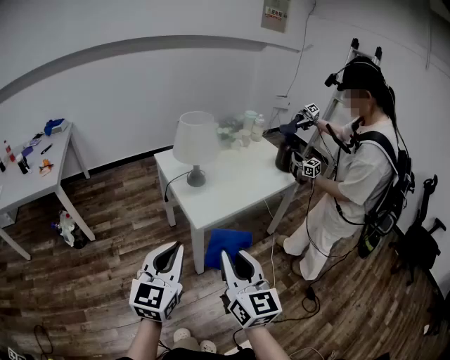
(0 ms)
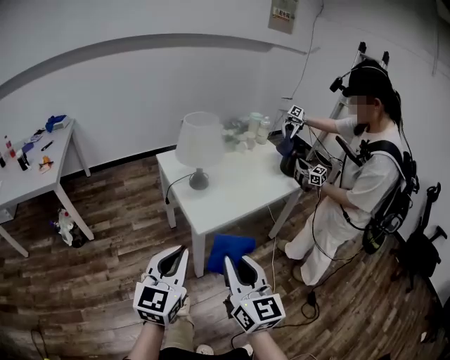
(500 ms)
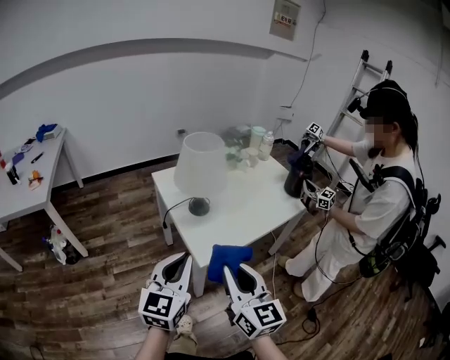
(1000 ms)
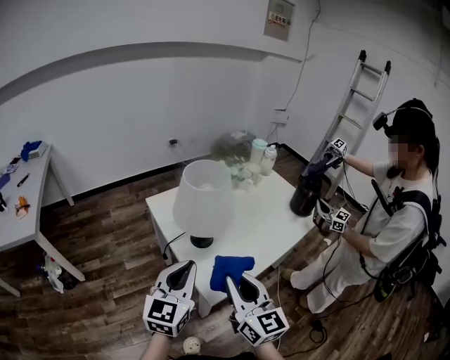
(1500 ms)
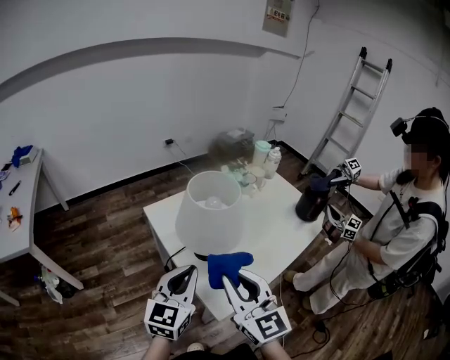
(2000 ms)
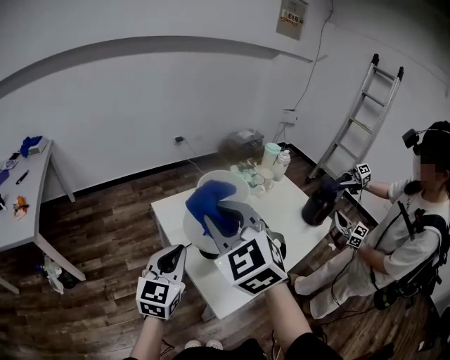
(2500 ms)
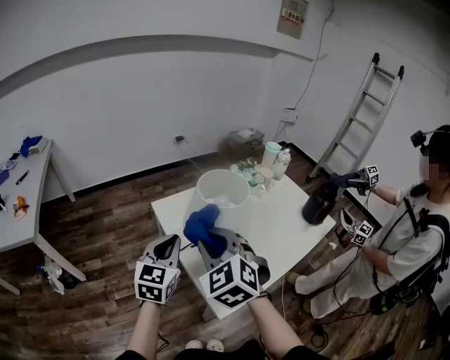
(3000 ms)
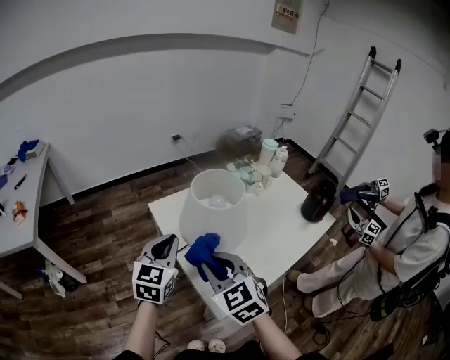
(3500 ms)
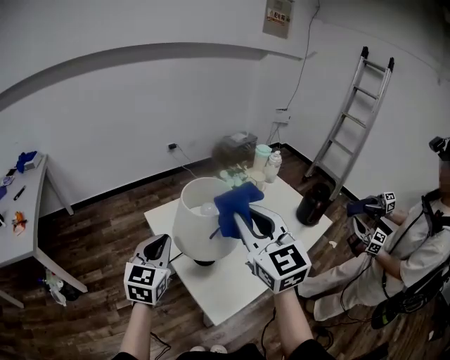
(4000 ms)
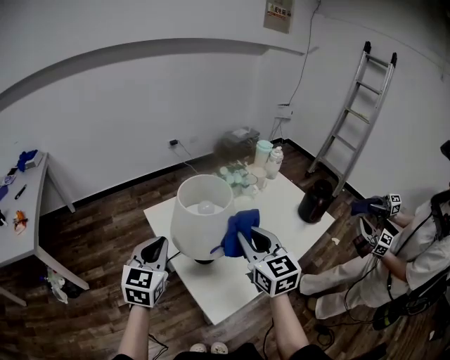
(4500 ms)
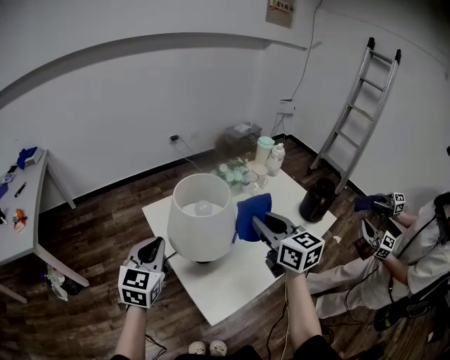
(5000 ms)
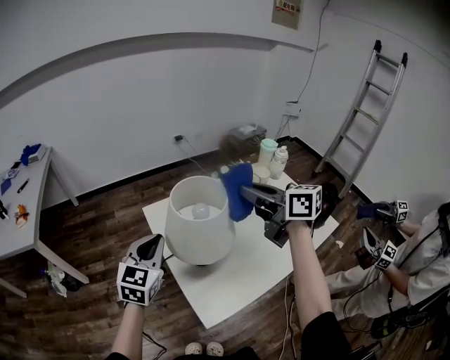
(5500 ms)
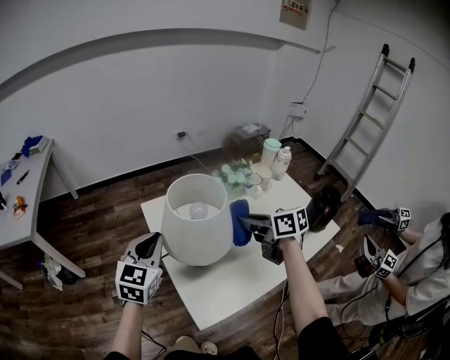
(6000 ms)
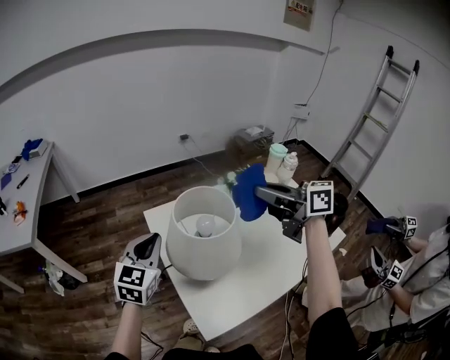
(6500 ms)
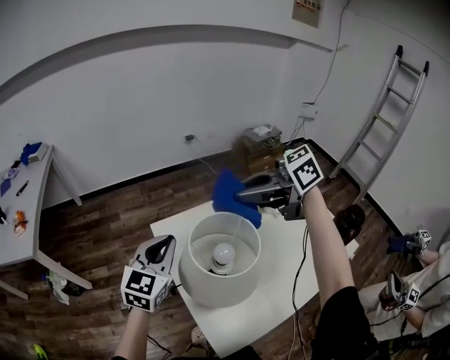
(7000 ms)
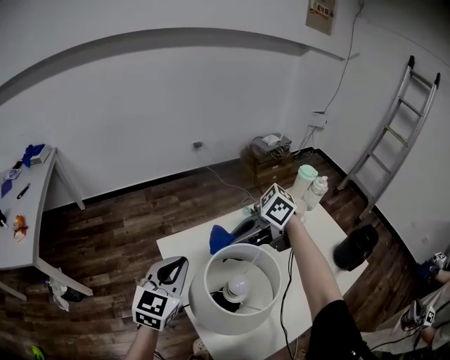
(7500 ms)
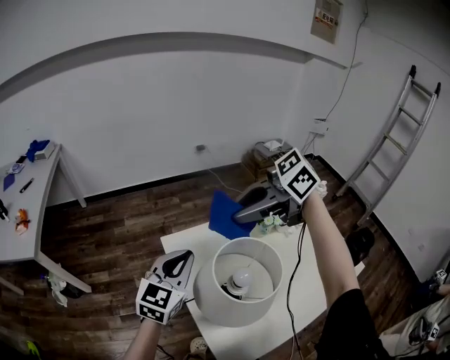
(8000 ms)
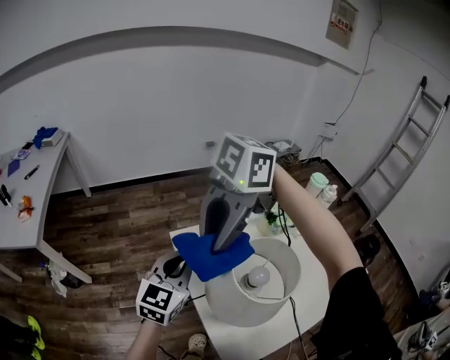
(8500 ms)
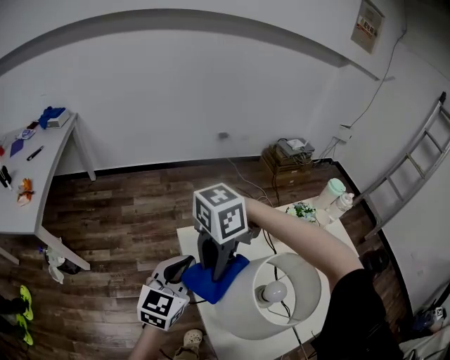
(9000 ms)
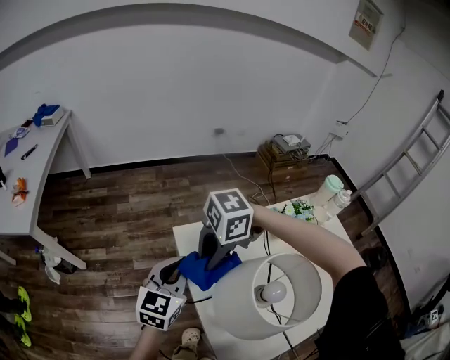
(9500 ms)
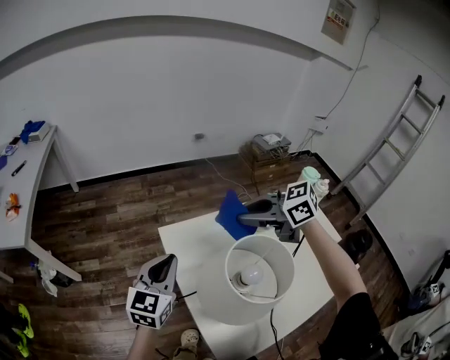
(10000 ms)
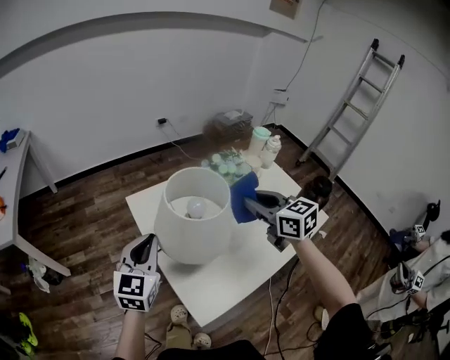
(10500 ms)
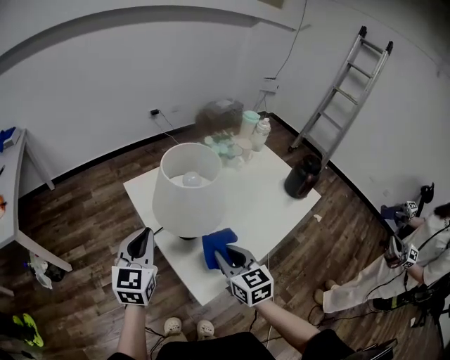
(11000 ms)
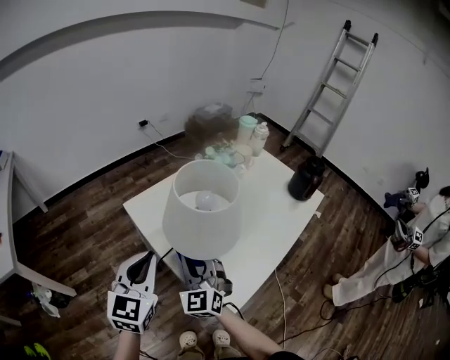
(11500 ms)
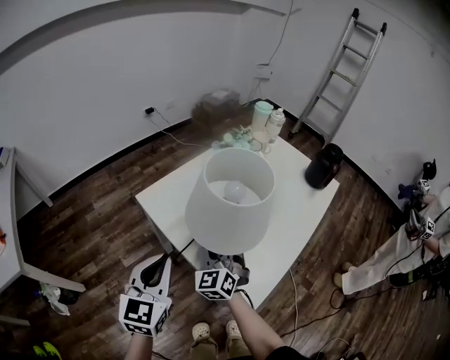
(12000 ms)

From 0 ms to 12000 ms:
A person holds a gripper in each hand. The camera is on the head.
From 0 ms to 2000 ms: The grippers both shift forward by approximately 35 cm.
From 2000 ms to 4000 ms: The left gripper travels forward by some 10 cm; the right gripper swings up and down, about 15 cm each way, with 2 reversals.
From 4000 ms to 6000 ms: The right gripper swings up and down, about 20 cm each way, with 2 reversals, and swivels about 60 degrees.
From 6000 ms to 8000 ms: The right gripper moves up and down over about 15 cm, changing direction 2 times, and swivels about 60 degrees. Meanwhile the left gripper changes place by approximately 10 cm.
From 8000 ms to 10000 ms: The right gripper is displaced downward by about 10 cm, while the left gripper shifts by approximately 10 cm.
From 10000 ms to 12000 ms: The left gripper ends up approximately 15 cm from where it was. The right gripper heads downward, covering about 20 cm, and changes its angle by some 90 degrees.

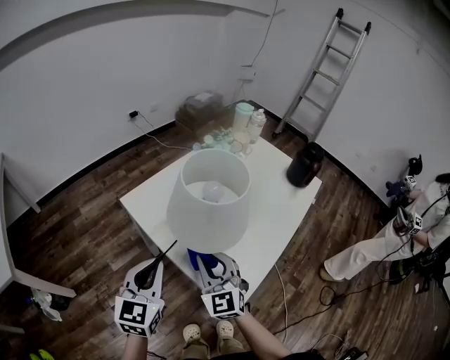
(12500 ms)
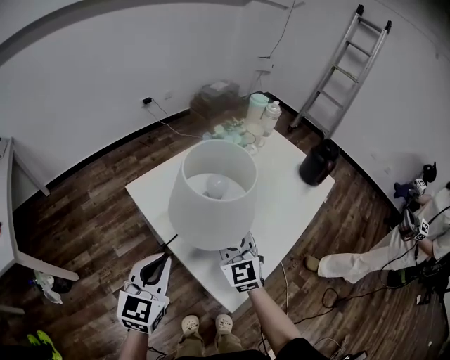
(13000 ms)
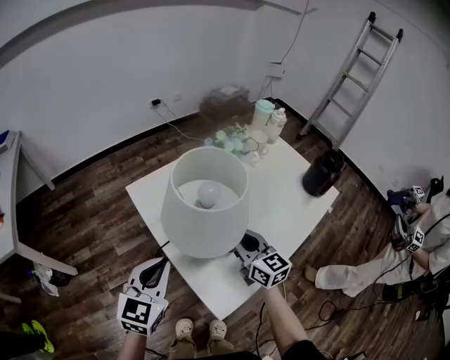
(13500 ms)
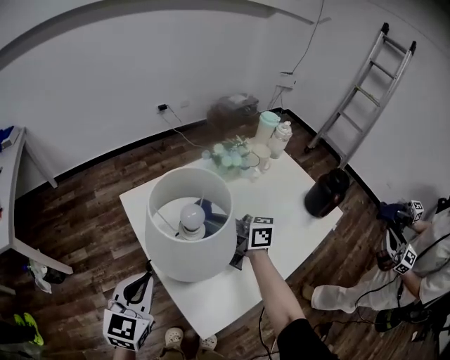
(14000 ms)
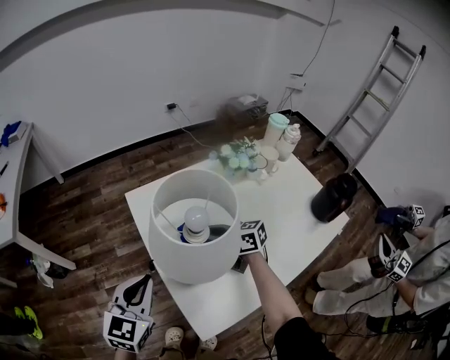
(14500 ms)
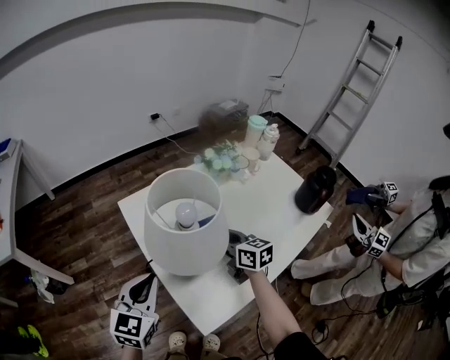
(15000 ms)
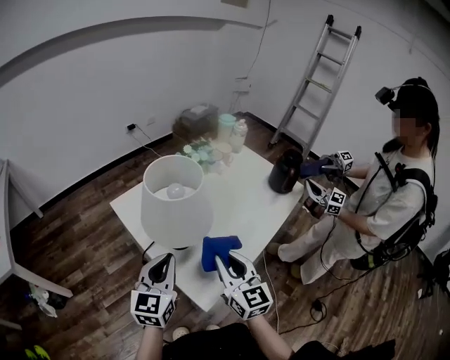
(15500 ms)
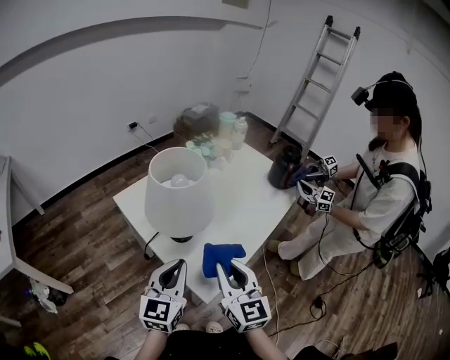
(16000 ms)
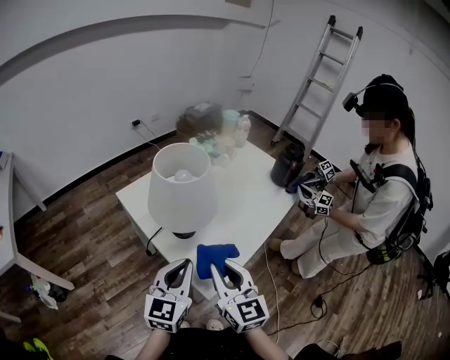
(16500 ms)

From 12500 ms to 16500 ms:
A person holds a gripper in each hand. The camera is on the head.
From 12500 ms to 14500 ms: The right gripper changes place by approximately 15 cm, and swivels roughly 80 degrees.
From 14500 ms to 16500 ms: The left gripper changes place by roughly 15 cm, and rotates roughly 20 degrees. The right gripper changes place by some 30 cm, and swivels about 70 degrees.

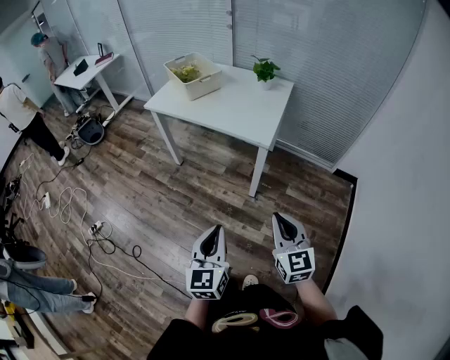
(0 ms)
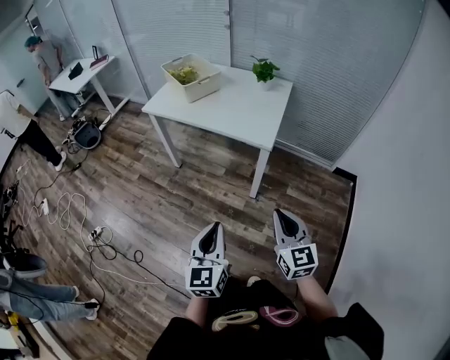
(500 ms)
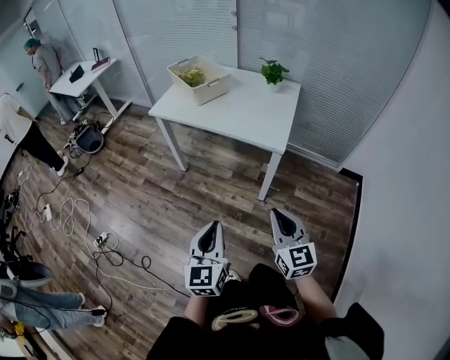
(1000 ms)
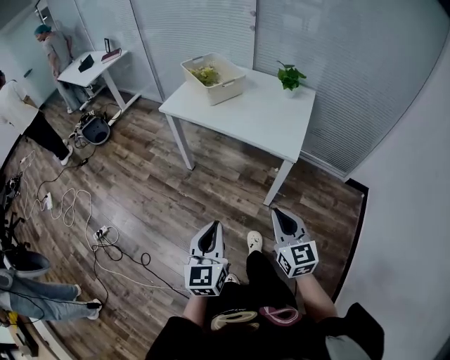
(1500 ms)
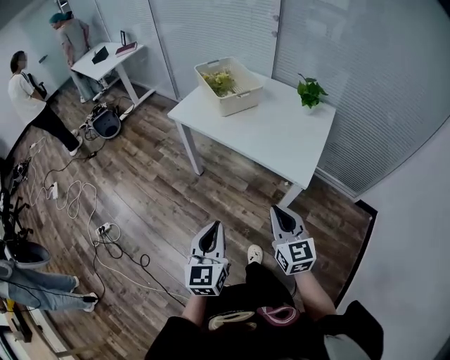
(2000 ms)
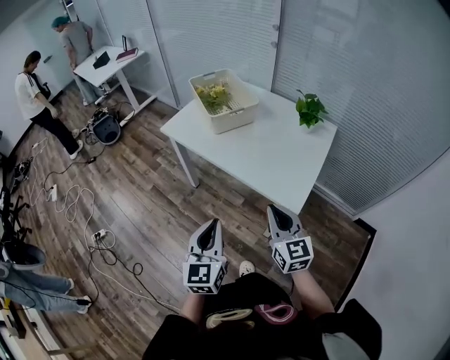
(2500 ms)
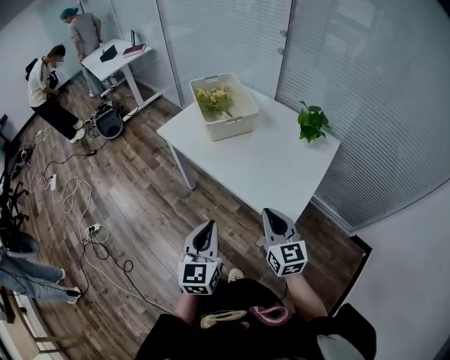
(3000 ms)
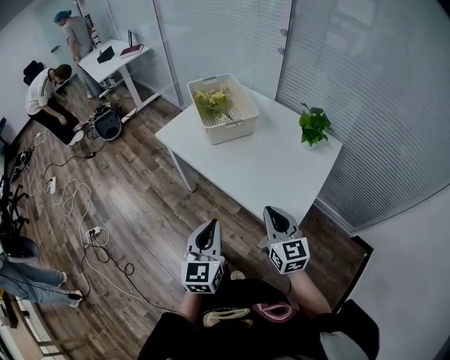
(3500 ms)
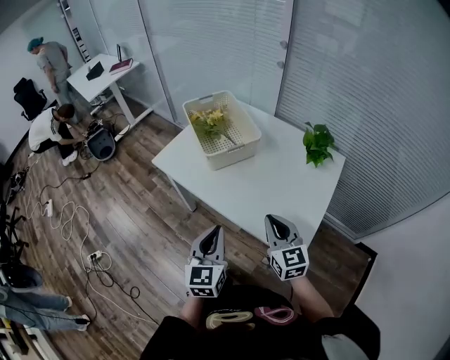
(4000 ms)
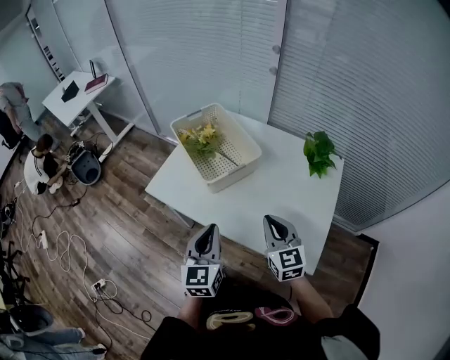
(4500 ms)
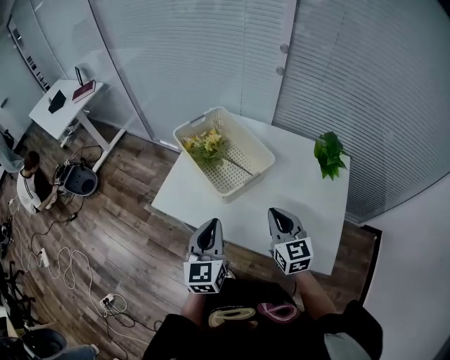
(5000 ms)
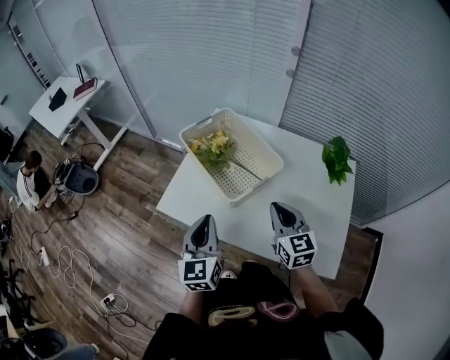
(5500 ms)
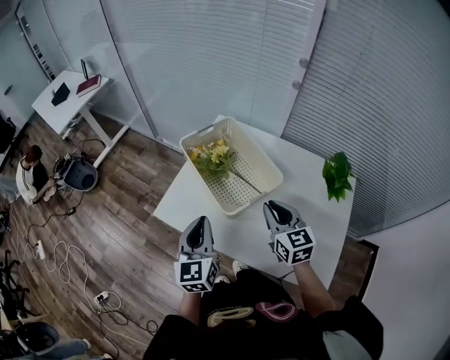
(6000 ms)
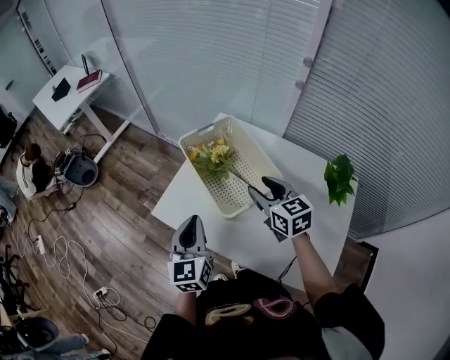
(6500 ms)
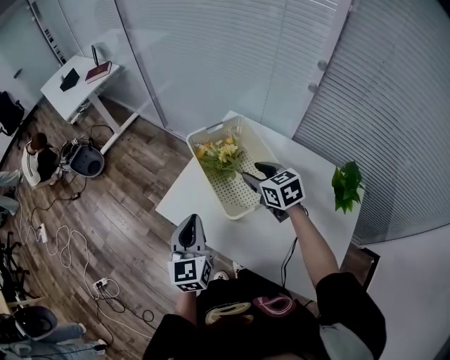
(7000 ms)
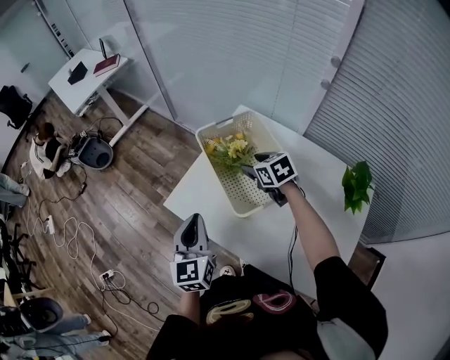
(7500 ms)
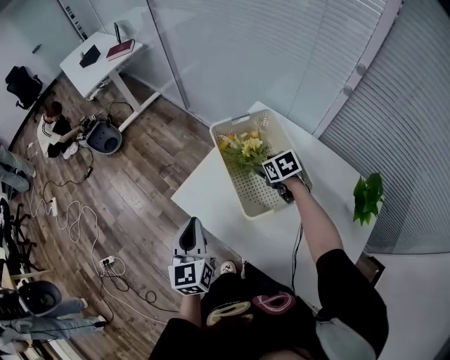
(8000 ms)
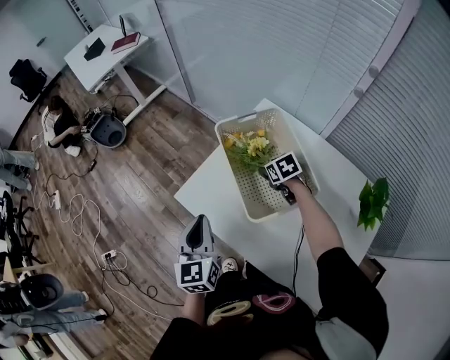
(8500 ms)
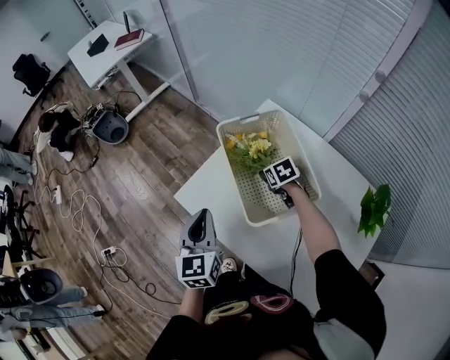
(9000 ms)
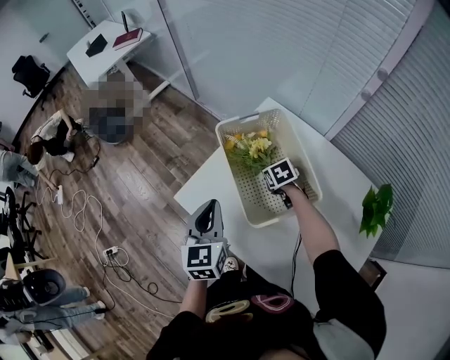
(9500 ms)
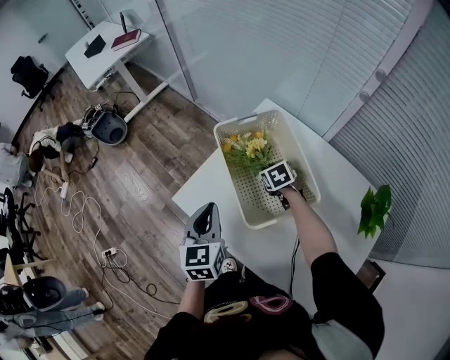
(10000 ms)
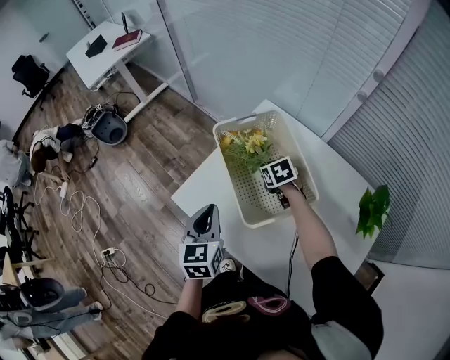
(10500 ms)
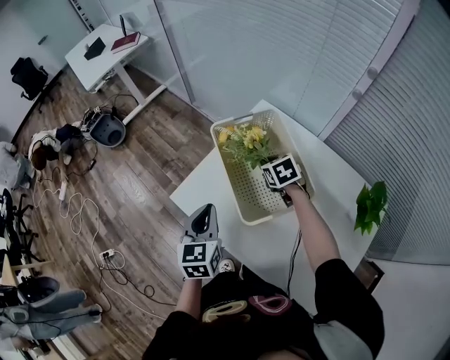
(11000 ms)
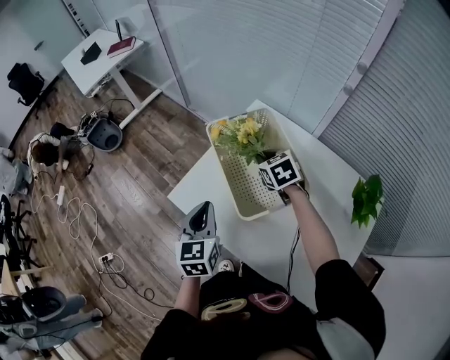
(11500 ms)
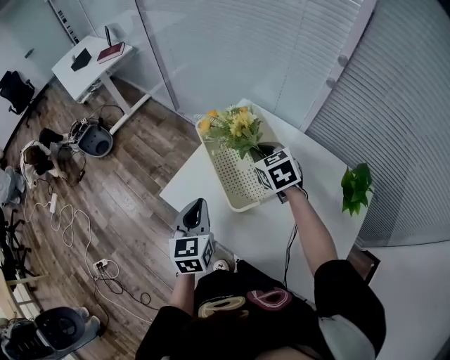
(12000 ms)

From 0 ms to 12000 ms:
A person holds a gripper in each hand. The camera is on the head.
From 0 ms to 2000 ms: The two grippers go approximately 25 cm forward and to the left.
From 2000 ms to 4000 ms: Both grippers travel together forward, about 25 cm.
From 4000 ms to 6000 ms: The right gripper heads forward, covering roughly 25 cm, while the left gripper shifts some 30 cm forward and to the left.
From 6000 ms to 8000 ms: The left gripper shifts some 5 cm to the left. Meanwhile the right gripper moves forward and downward, roughly 25 cm, tilts its fingers about 30 degrees downward, and opens.
From 8000 ms to 10000 ms: The right gripper is displaced downward by about 5 cm, and closes up. Meanwhile the left gripper travels to the right by approximately 5 cm.
From 10000 ms to 12000 ms: The right gripper is displaced upward by approximately 20 cm, and rotates roughly 20 degrees.
